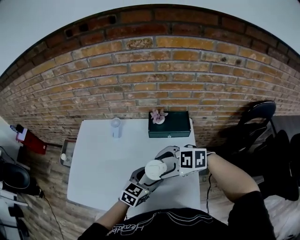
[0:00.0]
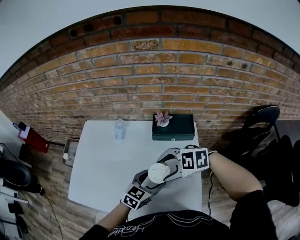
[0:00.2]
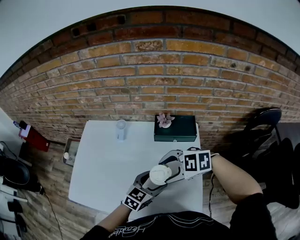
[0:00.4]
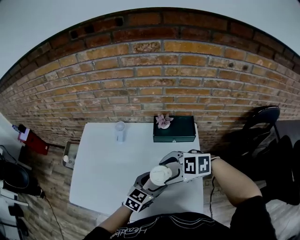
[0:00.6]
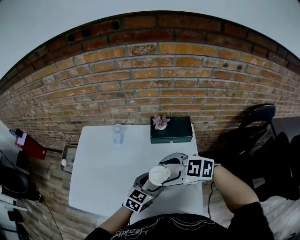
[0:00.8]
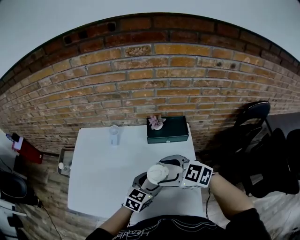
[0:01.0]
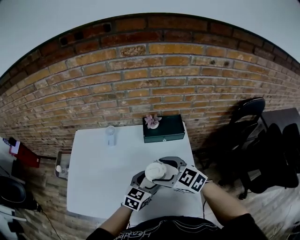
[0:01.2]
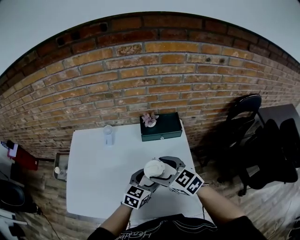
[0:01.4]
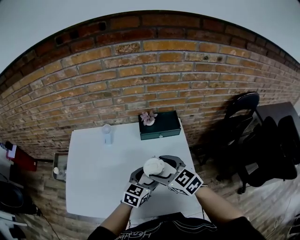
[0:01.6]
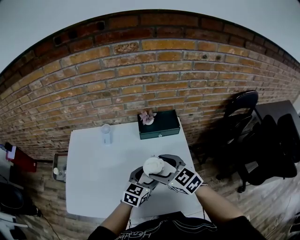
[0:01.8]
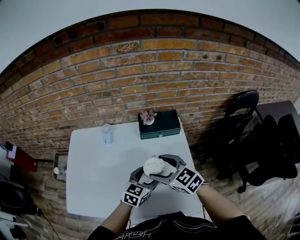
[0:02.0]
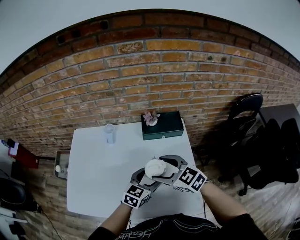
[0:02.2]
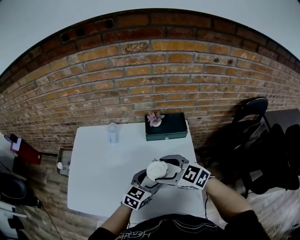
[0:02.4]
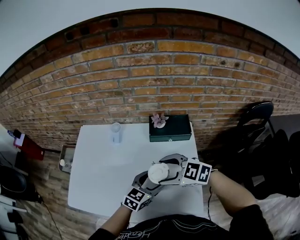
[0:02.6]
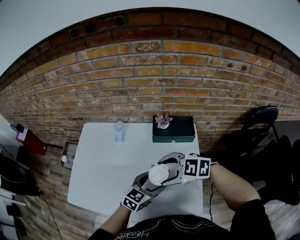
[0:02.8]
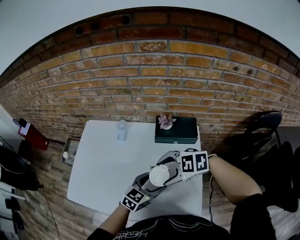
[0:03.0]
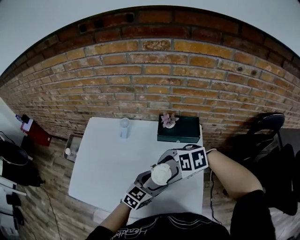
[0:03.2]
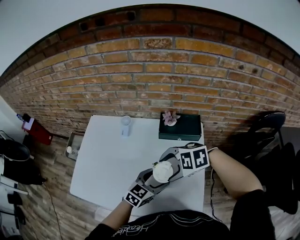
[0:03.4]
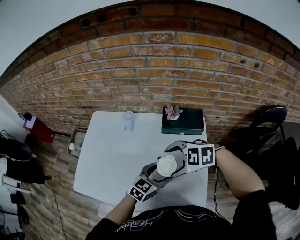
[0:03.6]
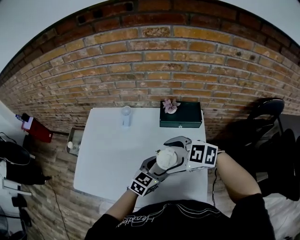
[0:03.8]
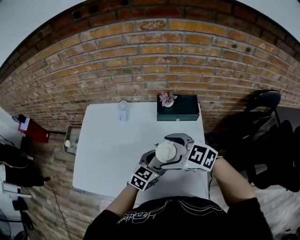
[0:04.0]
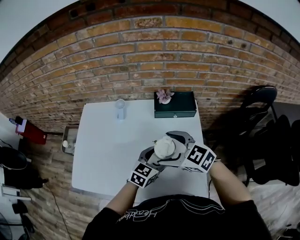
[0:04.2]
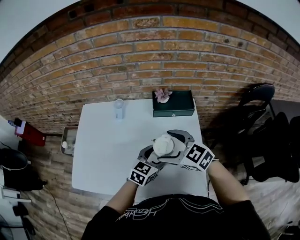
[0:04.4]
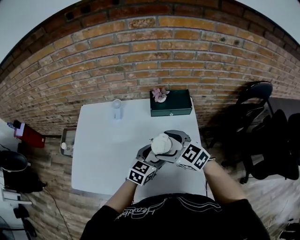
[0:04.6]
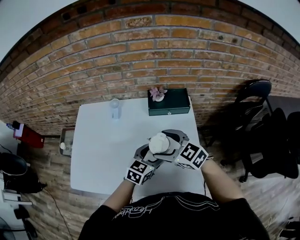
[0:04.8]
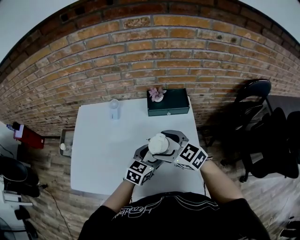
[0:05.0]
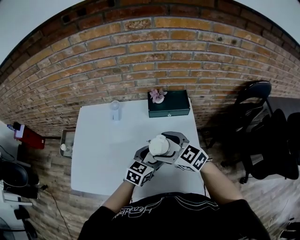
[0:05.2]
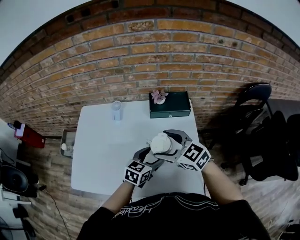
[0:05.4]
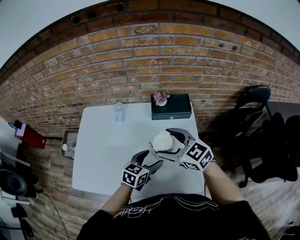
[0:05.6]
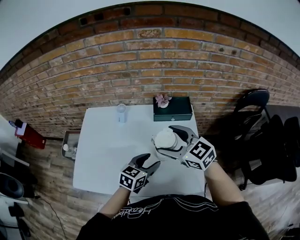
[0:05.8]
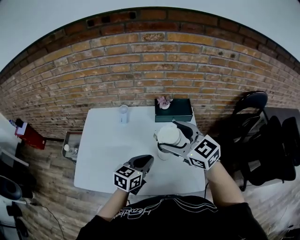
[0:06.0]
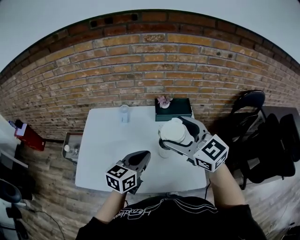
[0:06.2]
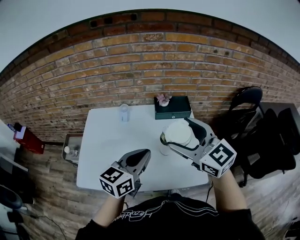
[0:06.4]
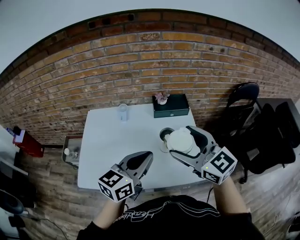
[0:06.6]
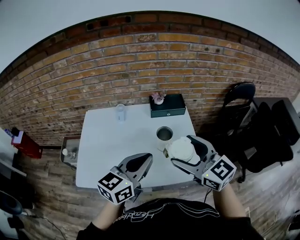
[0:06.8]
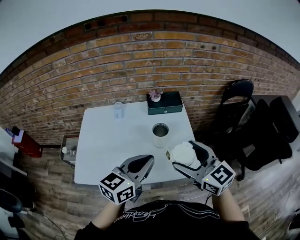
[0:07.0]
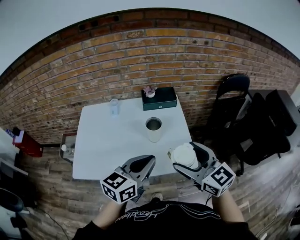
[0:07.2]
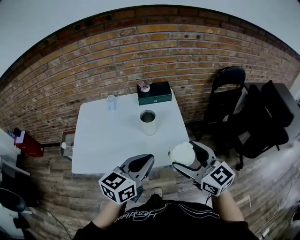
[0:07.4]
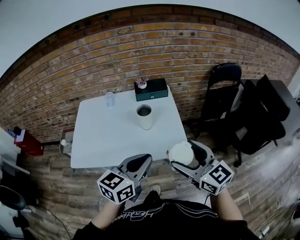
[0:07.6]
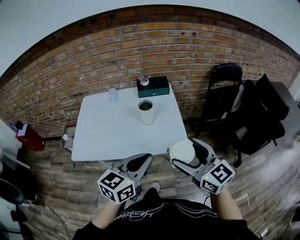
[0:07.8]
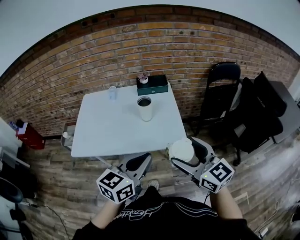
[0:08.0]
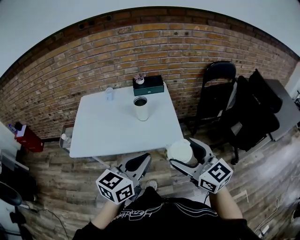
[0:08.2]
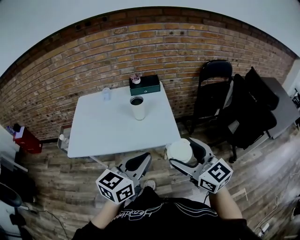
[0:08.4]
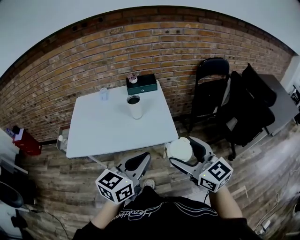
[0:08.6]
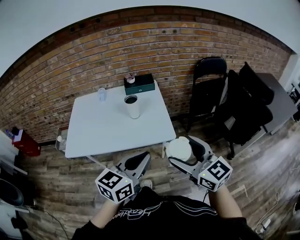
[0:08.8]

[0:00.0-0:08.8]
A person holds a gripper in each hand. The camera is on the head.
0:00.0 to 0:01.4: The right gripper swivels roughly 50 degrees.
0:01.4 to 0:03.0: The right gripper rotates approximately 60 degrees.
0:03.0 to 0:04.4: The right gripper swivels about 50 degrees.
0:04.4 to 0:05.8: The left gripper shifts by some 5 cm. Meanwhile the right gripper heads upward, covering approximately 5 cm.
0:05.8 to 0:07.4: The left gripper goes approximately 25 cm backward and upward, and closes up, while the right gripper shifts about 30 cm backward and to the right, and rotates about 20 degrees.
0:07.4 to 0:08.8: The two grippers go roughly 15 cm backward and to the right.

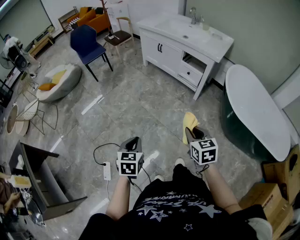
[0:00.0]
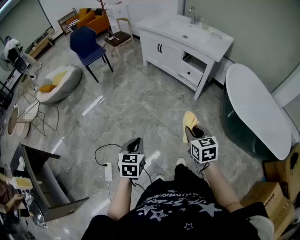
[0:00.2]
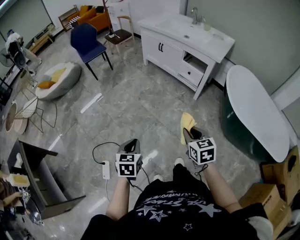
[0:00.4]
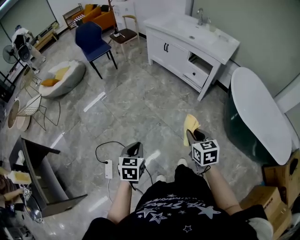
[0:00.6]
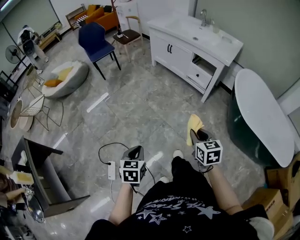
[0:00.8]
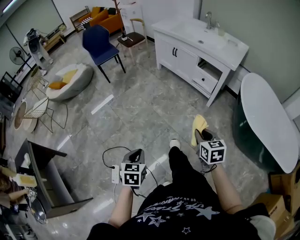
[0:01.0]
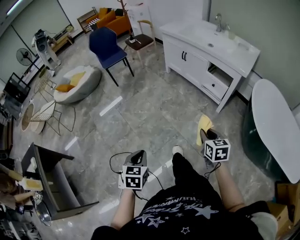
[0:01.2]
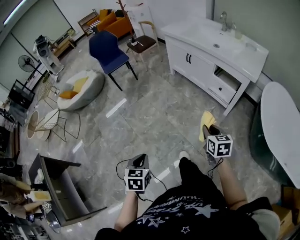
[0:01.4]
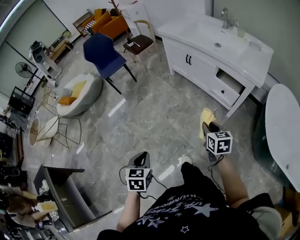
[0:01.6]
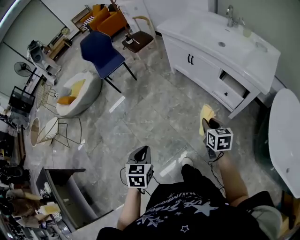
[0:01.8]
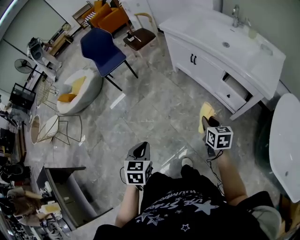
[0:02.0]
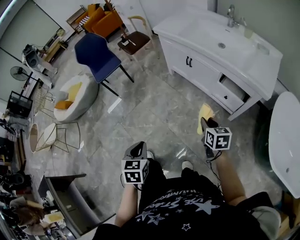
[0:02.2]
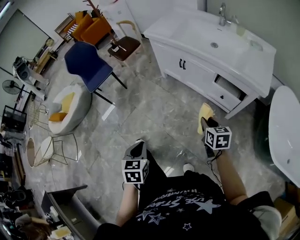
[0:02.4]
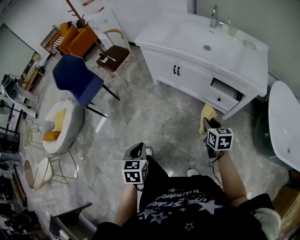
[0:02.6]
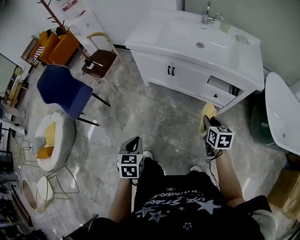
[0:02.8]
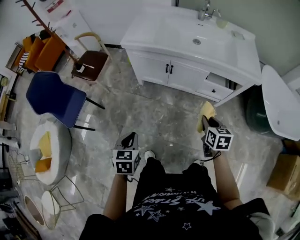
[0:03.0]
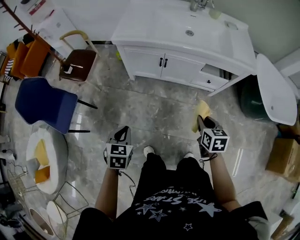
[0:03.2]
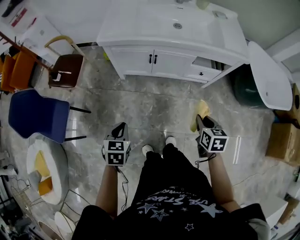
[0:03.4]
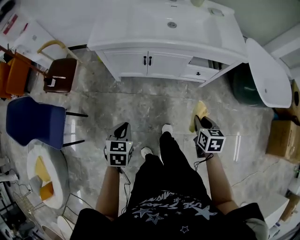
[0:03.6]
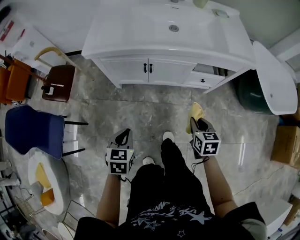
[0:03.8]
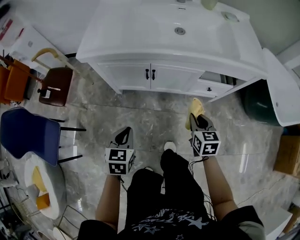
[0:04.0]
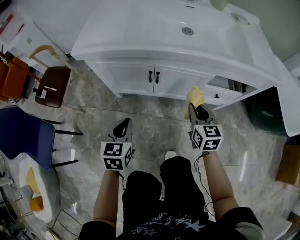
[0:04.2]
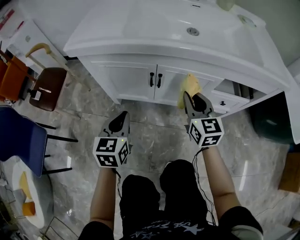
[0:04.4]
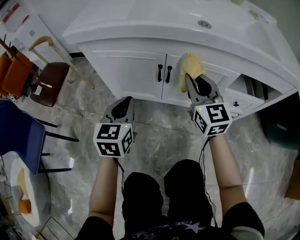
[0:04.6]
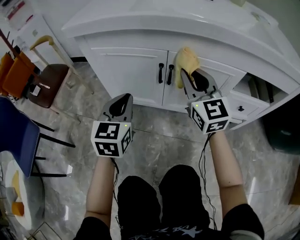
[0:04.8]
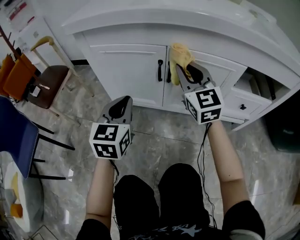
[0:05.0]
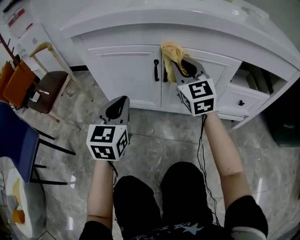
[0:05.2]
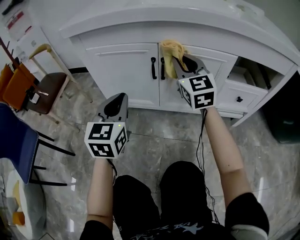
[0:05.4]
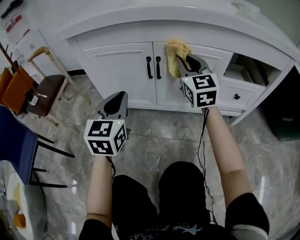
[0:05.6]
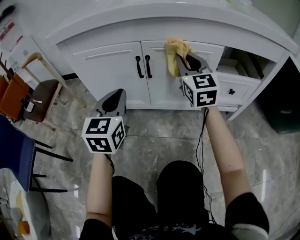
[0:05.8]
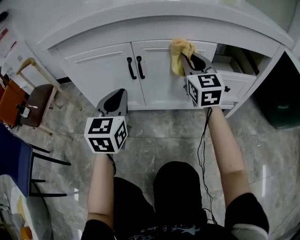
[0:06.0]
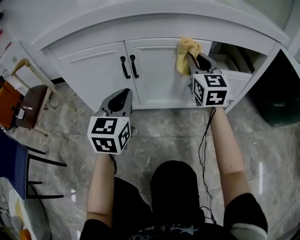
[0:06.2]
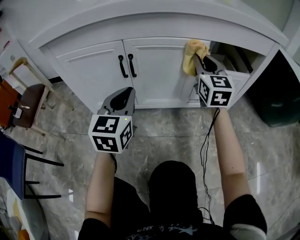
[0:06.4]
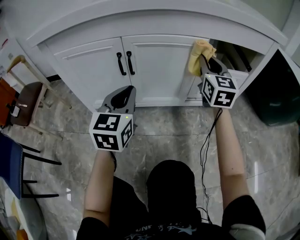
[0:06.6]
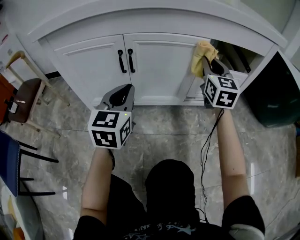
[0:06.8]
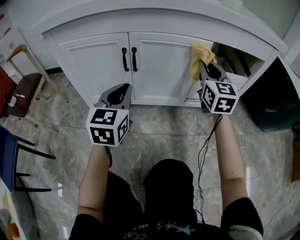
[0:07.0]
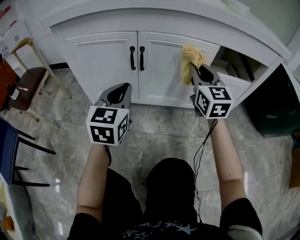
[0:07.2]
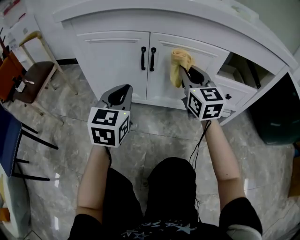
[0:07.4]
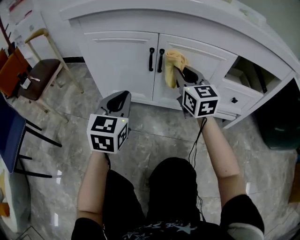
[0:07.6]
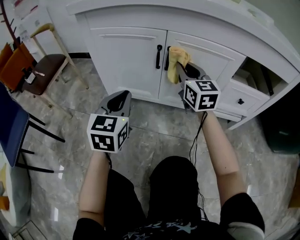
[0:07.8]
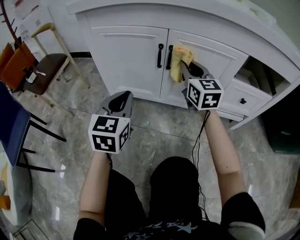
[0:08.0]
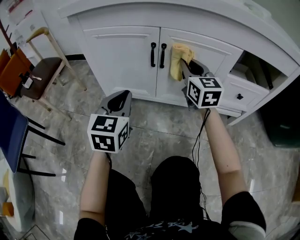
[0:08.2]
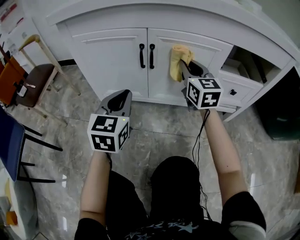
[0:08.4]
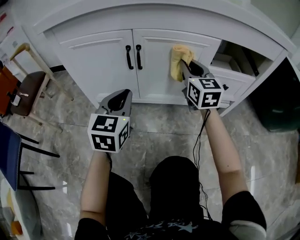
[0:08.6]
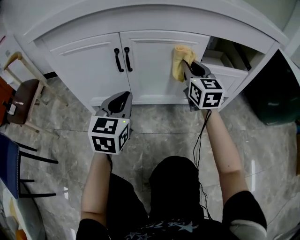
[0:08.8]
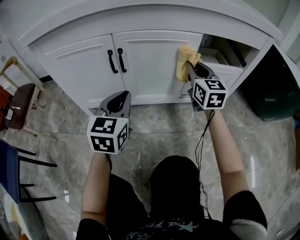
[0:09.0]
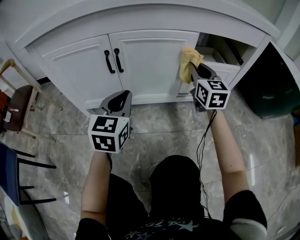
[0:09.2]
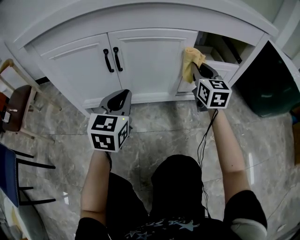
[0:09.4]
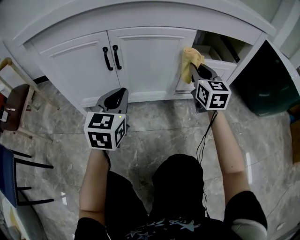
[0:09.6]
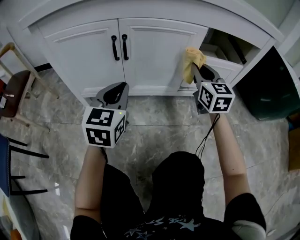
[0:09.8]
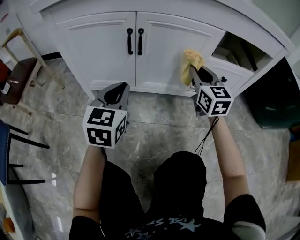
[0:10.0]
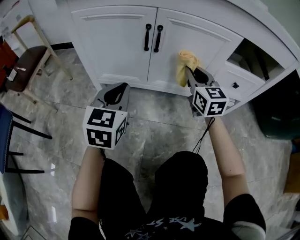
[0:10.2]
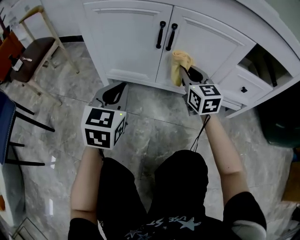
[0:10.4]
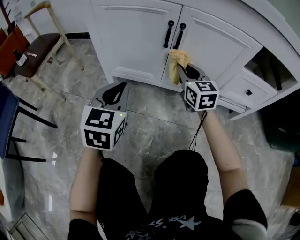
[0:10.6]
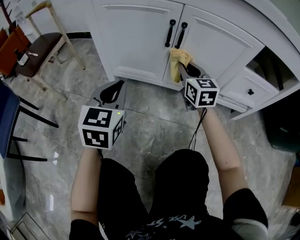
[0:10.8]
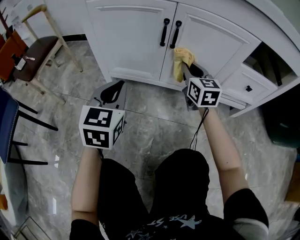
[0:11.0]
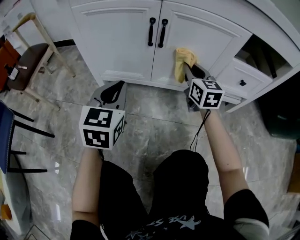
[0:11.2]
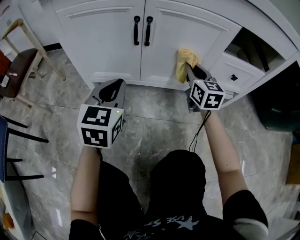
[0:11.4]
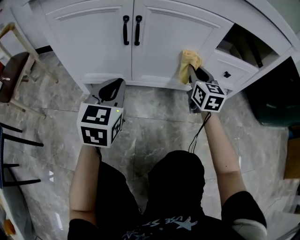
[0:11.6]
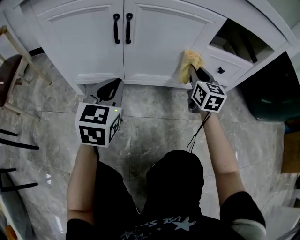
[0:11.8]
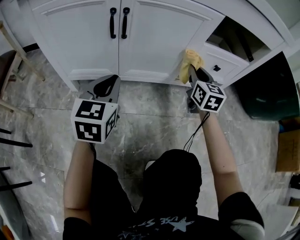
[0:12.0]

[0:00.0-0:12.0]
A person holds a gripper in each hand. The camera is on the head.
0:00.0 to 0:01.6: Both grippers travel together forward, about 30 cm.
0:01.6 to 0:03.0: The left gripper changes place by about 50 cm, and changes its angle by about 30 degrees. The right gripper moves approximately 30 cm, and rotates approximately 40 degrees.
0:03.0 to 0:04.4: The grippers both shift forward and downward by roughly 40 cm. The right gripper swivels approximately 30 degrees. Meanwhile the left gripper swivels about 20 degrees.
0:04.4 to 0:06.0: The left gripper shifts approximately 10 cm to the right and downward, and changes its angle by roughly 20 degrees; the right gripper travels to the right, forward and downward by about 10 cm, and changes its angle by about 20 degrees.
0:06.0 to 0:07.6: The left gripper changes place by roughly 5 cm, while the right gripper shifts roughly 10 cm to the left and downward.
0:07.6 to 0:09.0: The right gripper travels to the right by roughly 20 cm, and swivels about 20 degrees; the left gripper travels to the right by about 10 cm.
0:09.0 to 0:10.4: The left gripper heads to the left, covering roughly 15 cm. The right gripper travels to the left and downward by some 20 cm.
0:10.4 to 0:12.0: The right gripper moves to the right, roughly 20 cm, and changes its angle by approximately 30 degrees; the left gripper moves to the right, roughly 10 cm.

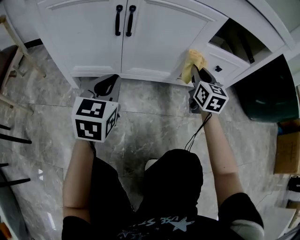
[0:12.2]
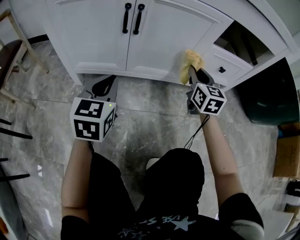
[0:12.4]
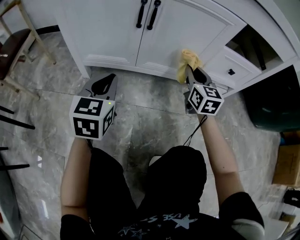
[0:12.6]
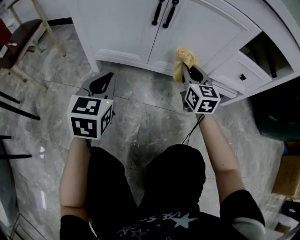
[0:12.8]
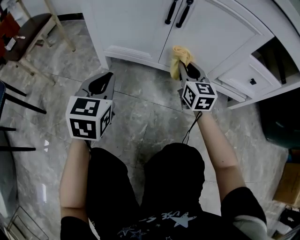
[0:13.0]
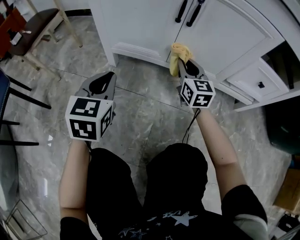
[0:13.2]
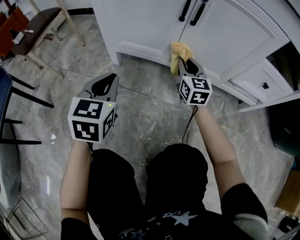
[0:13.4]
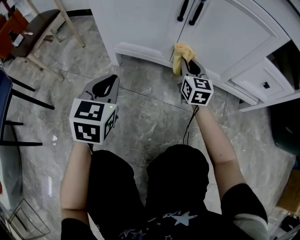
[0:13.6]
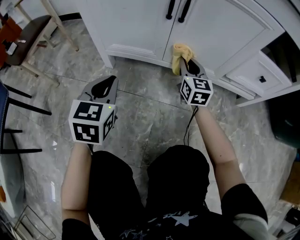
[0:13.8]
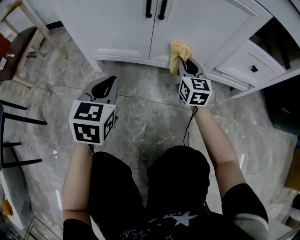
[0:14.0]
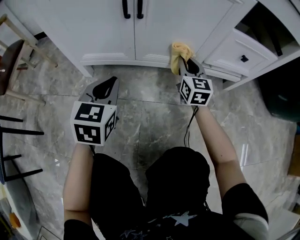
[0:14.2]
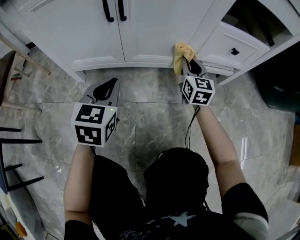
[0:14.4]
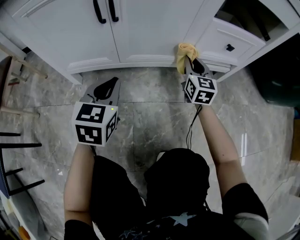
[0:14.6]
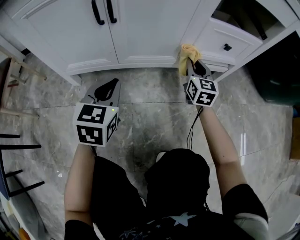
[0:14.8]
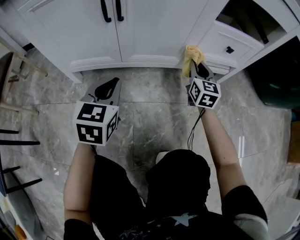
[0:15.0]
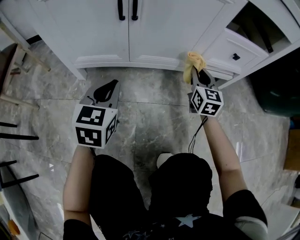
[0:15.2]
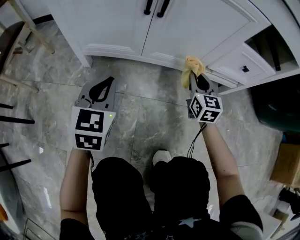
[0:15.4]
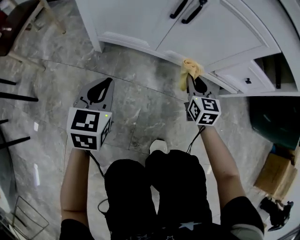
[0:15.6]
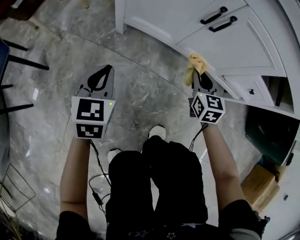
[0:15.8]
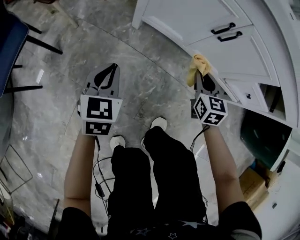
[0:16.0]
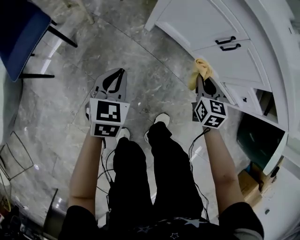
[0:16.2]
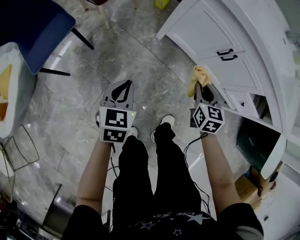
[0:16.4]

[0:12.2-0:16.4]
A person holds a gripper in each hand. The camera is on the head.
0:12.2 to 0:13.6: The right gripper heads to the left and downward, covering some 25 cm, and swivels roughly 20 degrees; the left gripper heads to the left, covering some 15 cm.
0:13.6 to 0:15.0: The right gripper is displaced to the right by approximately 25 cm, and swivels about 20 degrees, while the left gripper is displaced to the right by roughly 15 cm.
0:15.0 to 0:16.4: The left gripper ends up roughly 50 cm from where it was, and changes its angle by approximately 40 degrees. Meanwhile the right gripper moves some 50 cm, and swivels some 40 degrees.
